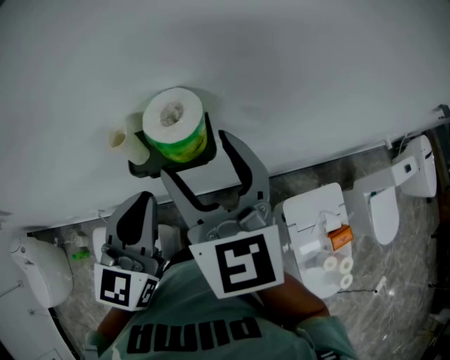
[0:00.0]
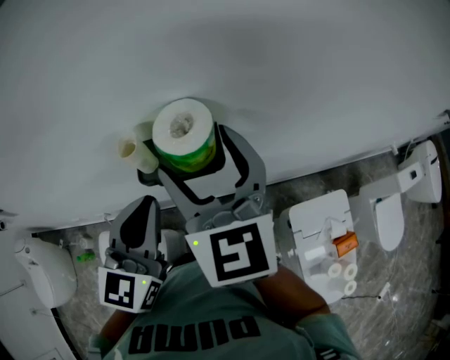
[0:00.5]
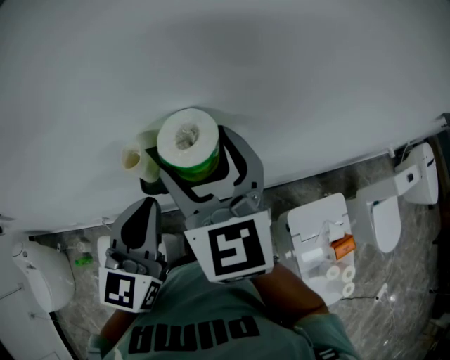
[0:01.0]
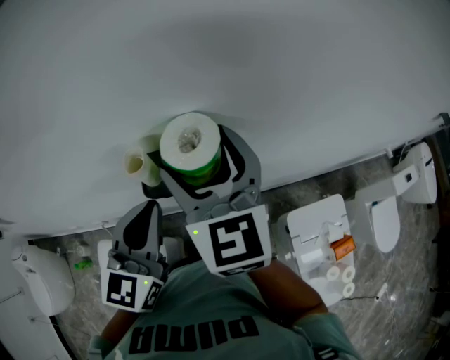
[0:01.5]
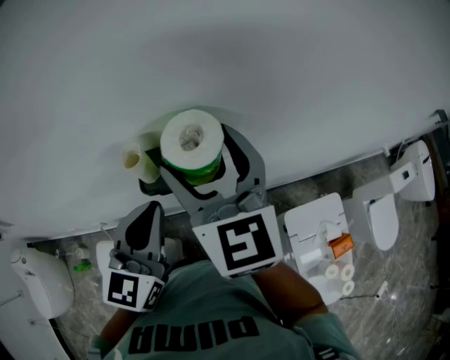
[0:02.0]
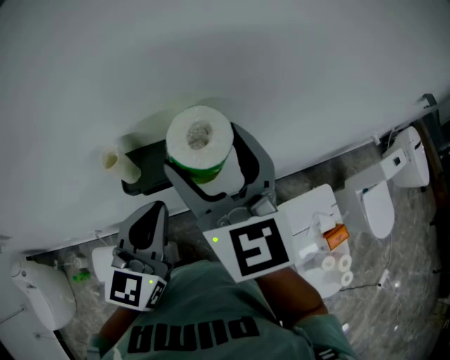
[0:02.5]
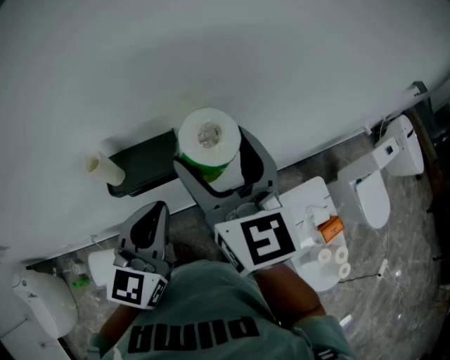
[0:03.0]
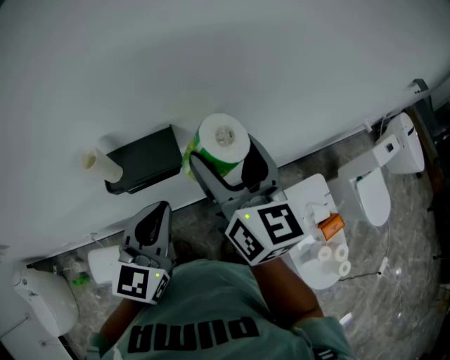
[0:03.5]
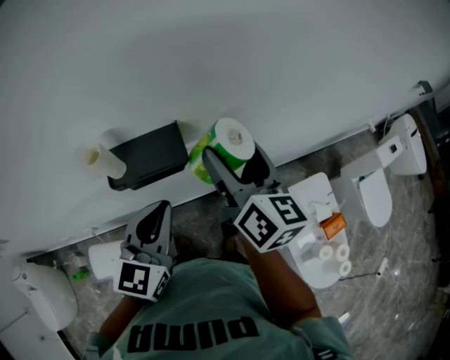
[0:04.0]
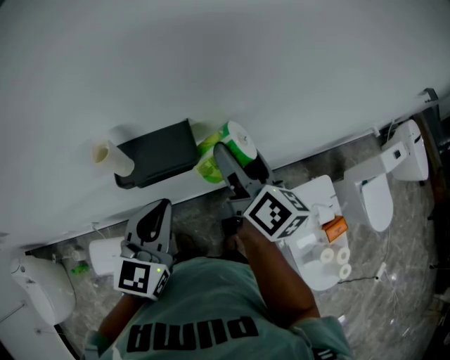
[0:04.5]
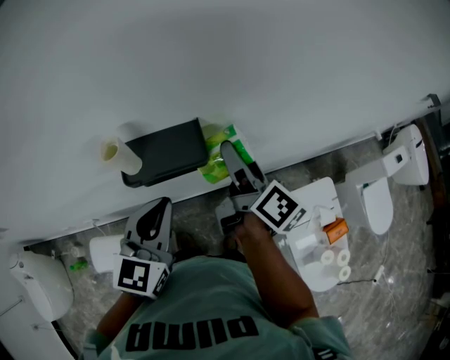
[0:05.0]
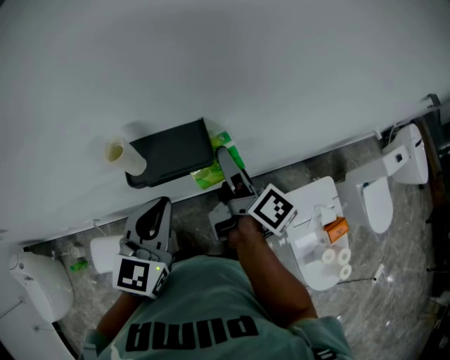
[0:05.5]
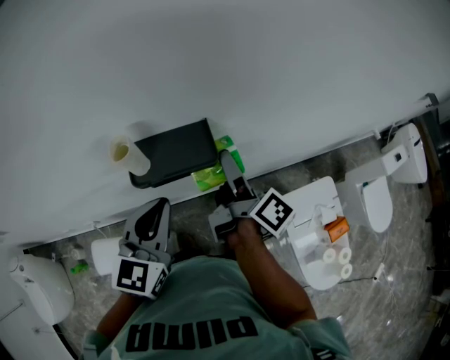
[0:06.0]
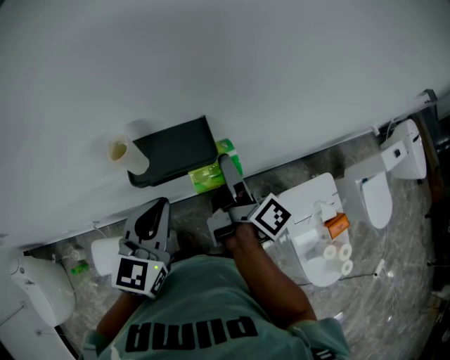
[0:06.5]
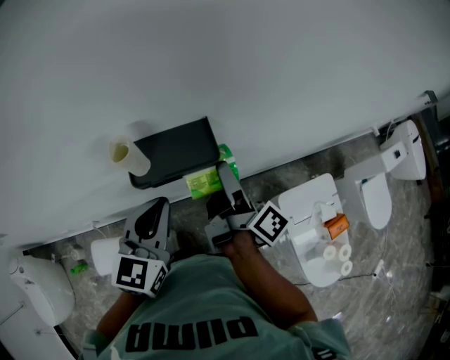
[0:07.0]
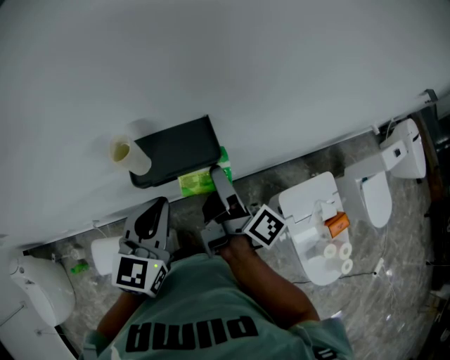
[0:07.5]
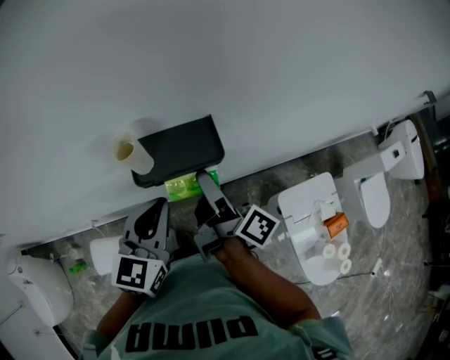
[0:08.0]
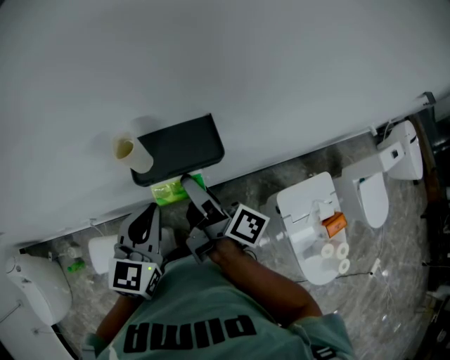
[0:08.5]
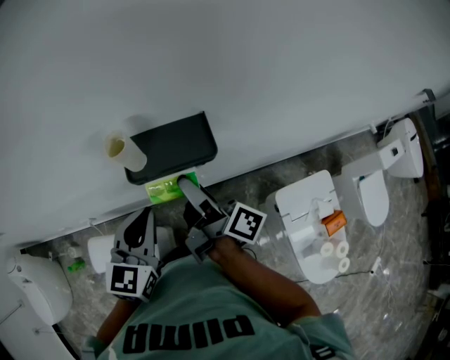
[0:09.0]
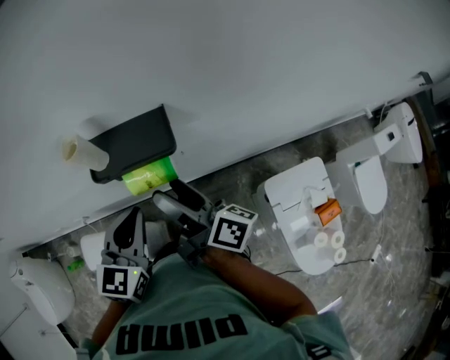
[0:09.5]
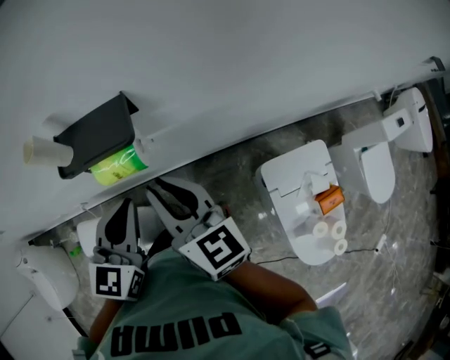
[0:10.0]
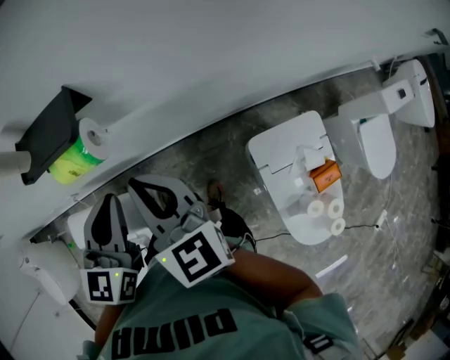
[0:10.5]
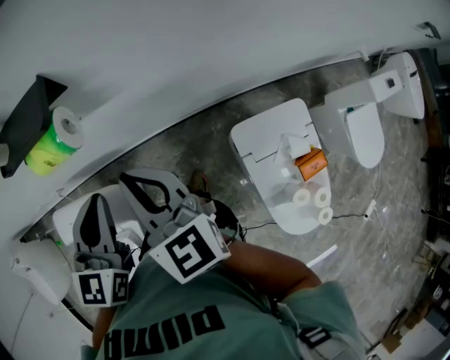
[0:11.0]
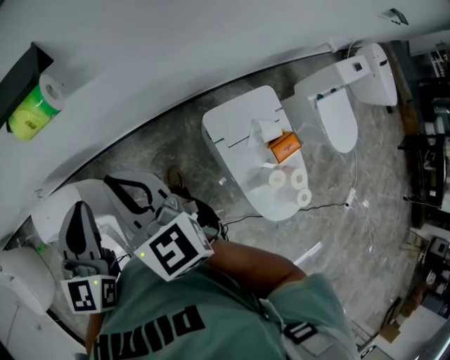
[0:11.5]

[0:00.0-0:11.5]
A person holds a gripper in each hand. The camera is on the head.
0:02.0 to 0:04.0: The right gripper goes roughly 15 cm to the right and downward, and rotates some 40 degrees. Meanwhile the left gripper goes some 10 cm to the right and downward.
0:04.0 to 0:06.0: The left gripper moves to the left, approximately 5 cm; the right gripper travels downward and to the left by roughly 10 cm, and rolls clockwise, seen from behind, by some 50 degrees.
0:06.0 to 0:07.5: There are only small adjustments of the grippers.
0:07.5 to 0:09.5: The right gripper changes place by roughly 5 cm, and rotates about 20 degrees.
0:09.5 to 0:11.5: Both grippers travel together backward and to the right, about 15 cm. The right gripper rolls counterclockwise, seen from behind, by approximately 60 degrees, and closes its fingers.

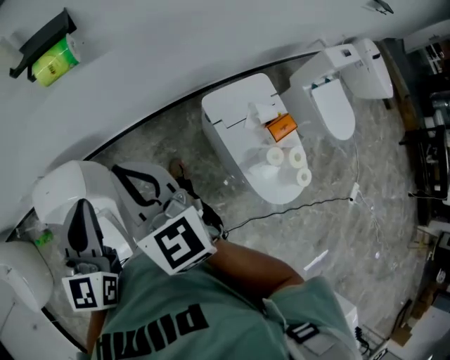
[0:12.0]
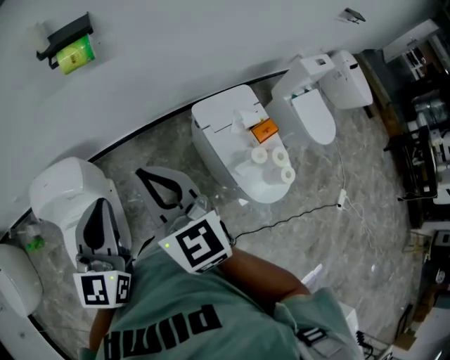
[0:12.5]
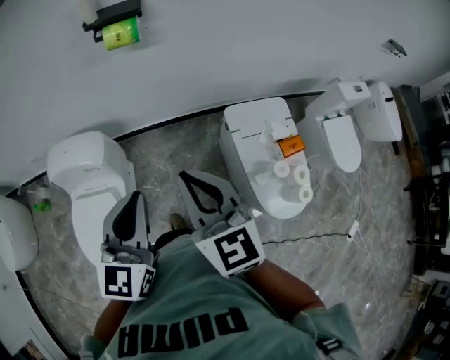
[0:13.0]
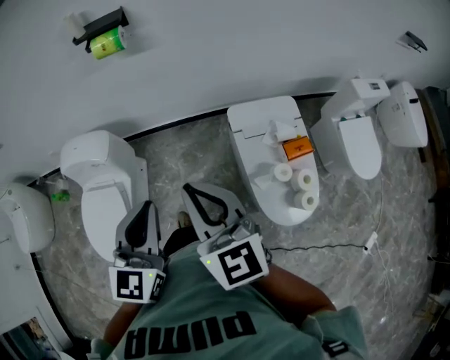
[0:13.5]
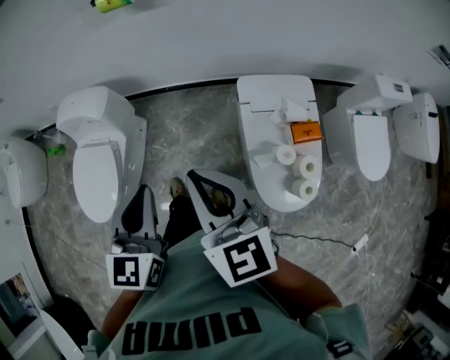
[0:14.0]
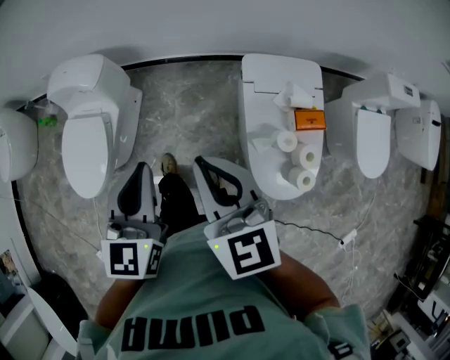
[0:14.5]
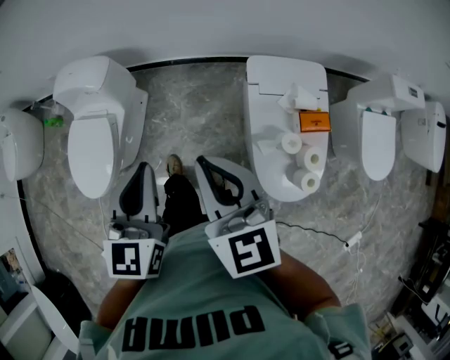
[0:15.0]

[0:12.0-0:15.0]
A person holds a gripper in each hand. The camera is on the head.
0:12.0 to 0:13.5: Both grippers move backward and to the right, approximately 25 cm.
0:13.5 to 0:15.0: Both grippers move downward, about 5 cm.

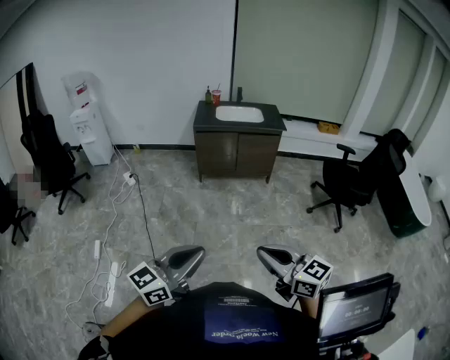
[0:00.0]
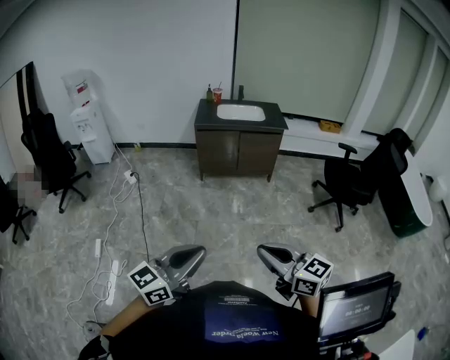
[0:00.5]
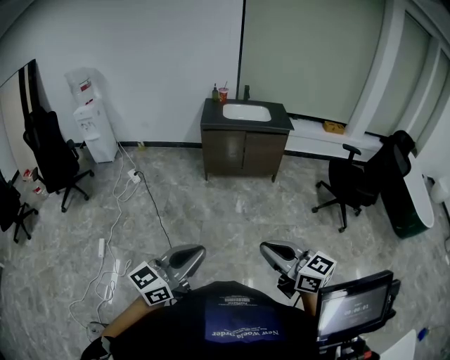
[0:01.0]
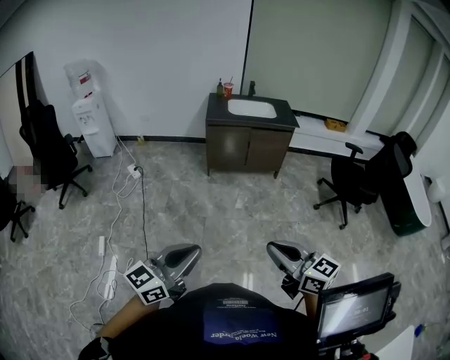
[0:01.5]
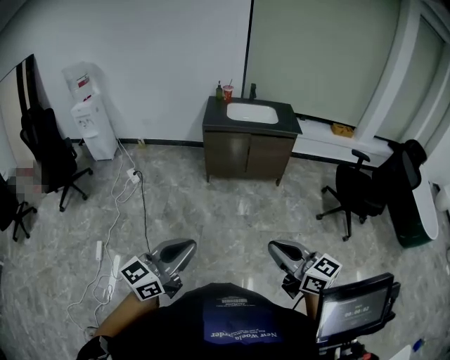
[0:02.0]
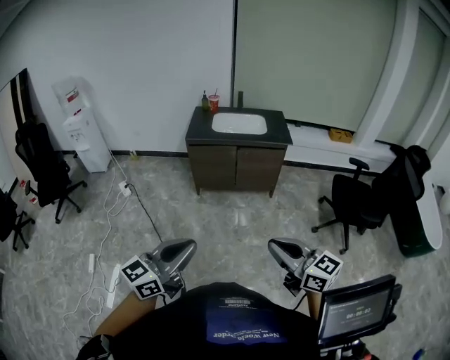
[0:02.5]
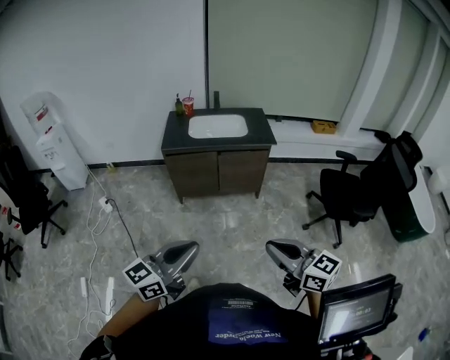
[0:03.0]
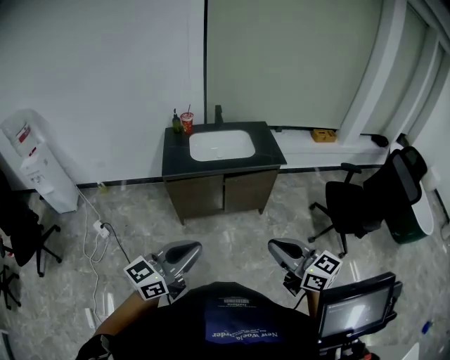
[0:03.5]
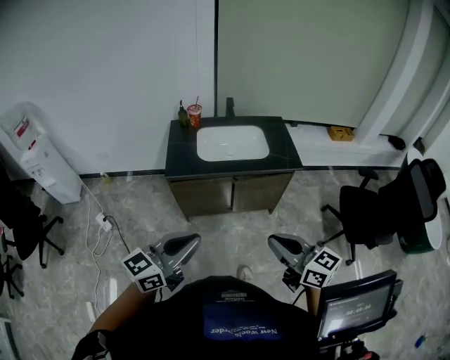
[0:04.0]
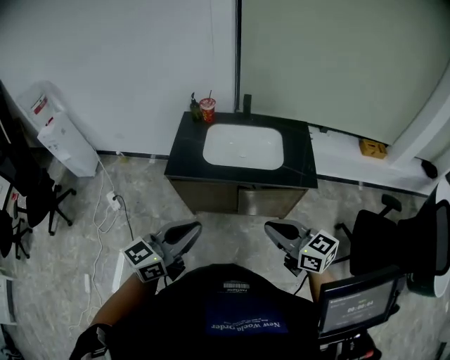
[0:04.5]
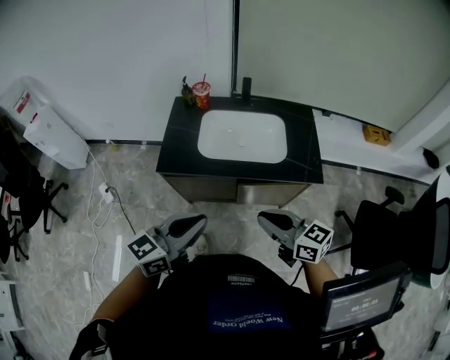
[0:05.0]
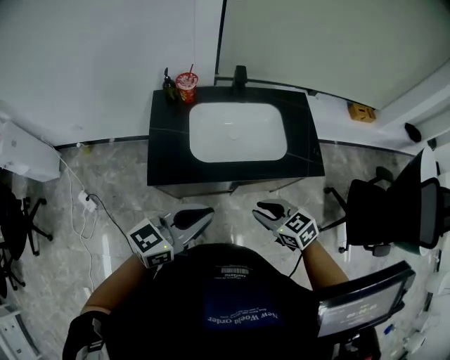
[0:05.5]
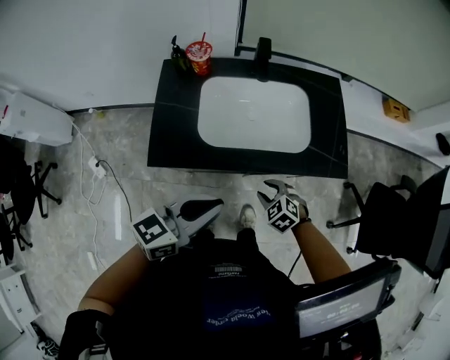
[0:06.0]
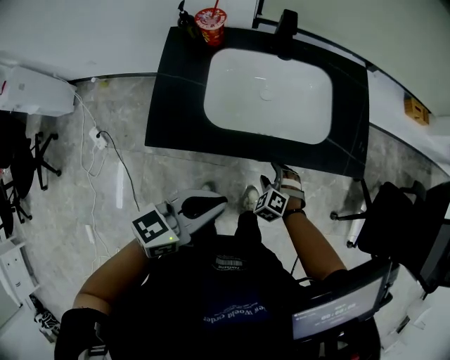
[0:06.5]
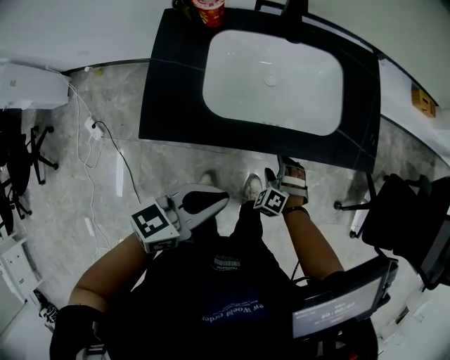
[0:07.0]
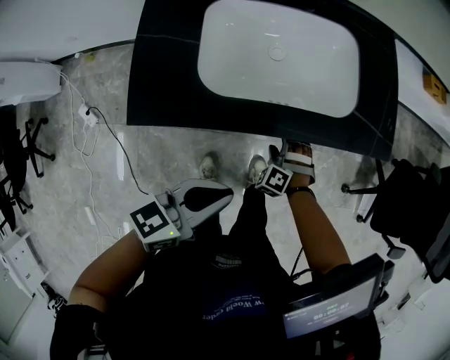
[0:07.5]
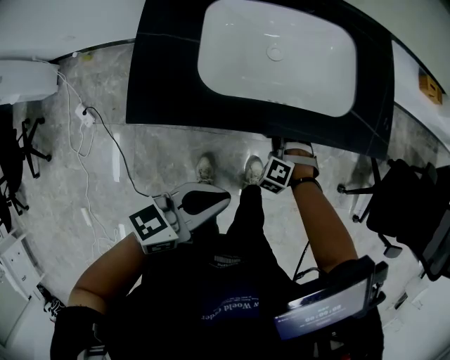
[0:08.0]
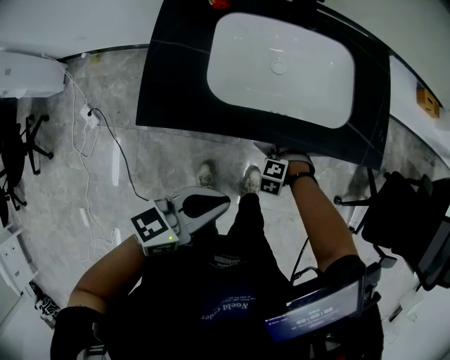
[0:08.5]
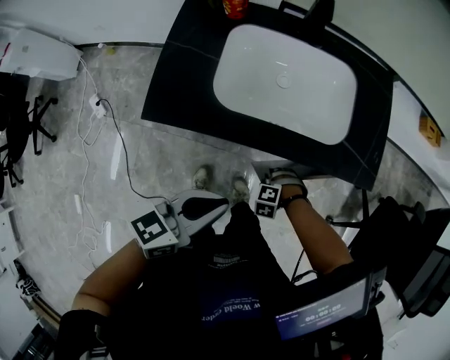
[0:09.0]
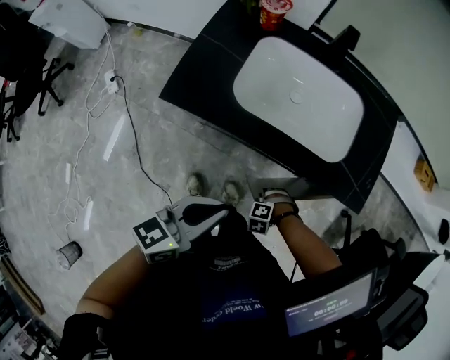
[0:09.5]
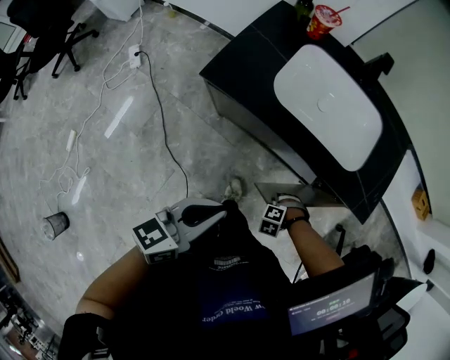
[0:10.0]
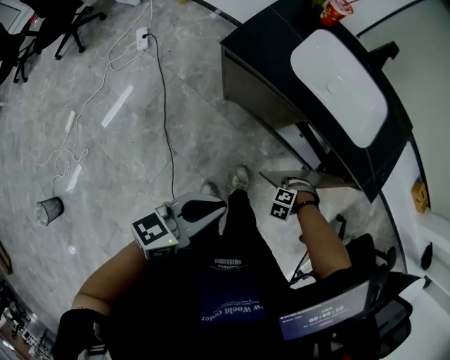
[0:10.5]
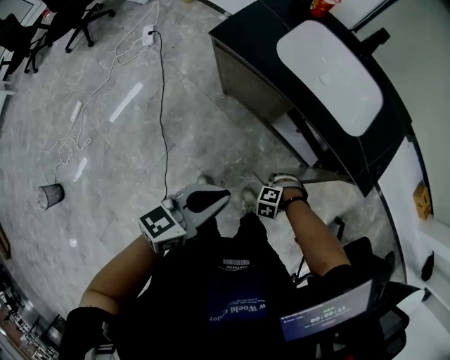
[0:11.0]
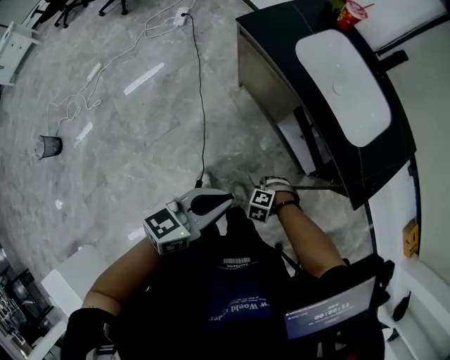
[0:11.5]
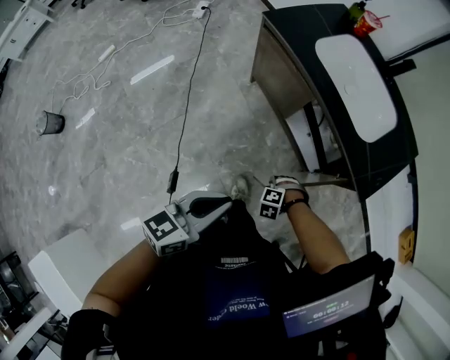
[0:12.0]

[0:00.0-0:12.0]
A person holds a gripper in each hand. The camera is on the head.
0:00.0 to 0:02.0: The right gripper travels forward by roughly 10 cm; the left gripper moves forward and to the left, some 15 cm.
0:02.0 to 0:04.0: The pair of grippers is taken forward, approximately 50 cm.
0:04.0 to 0:06.0: The left gripper shifts some 35 cm forward, while the right gripper heads forward and downward, covering some 50 cm, tips its fingers downward by roughly 50 degrees, and opens.
0:06.0 to 0:08.0: The grippers both shift downward by roughly 15 cm. The right gripper turns by about 40 degrees, and opens and closes again.
0:08.0 to 0:10.0: The right gripper shifts by roughly 20 cm, and changes its angle by some 50 degrees. The left gripper changes place by some 10 cm, and turns by some 40 degrees.
0:10.0 to 0:12.0: The left gripper ends up about 30 cm from where it was, and turns by approximately 30 degrees, while the right gripper moves some 15 cm, and swivels about 30 degrees.
